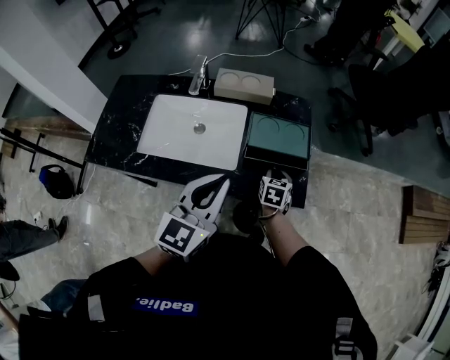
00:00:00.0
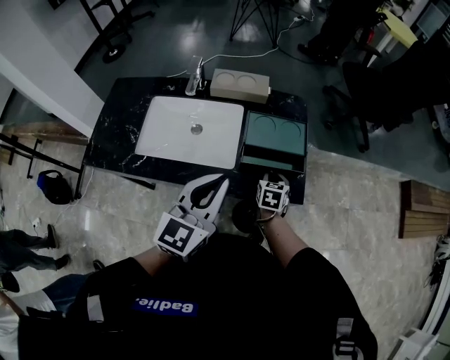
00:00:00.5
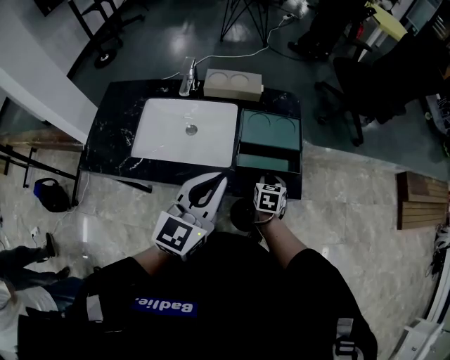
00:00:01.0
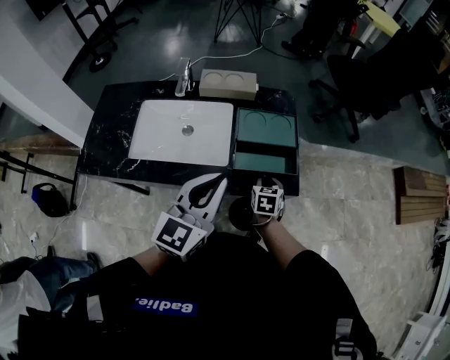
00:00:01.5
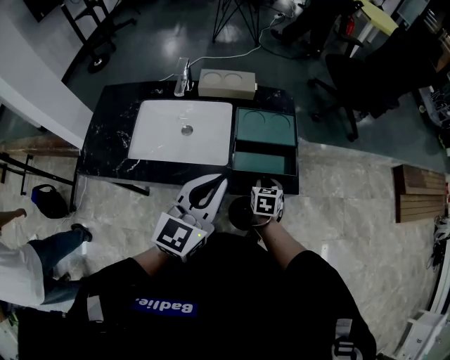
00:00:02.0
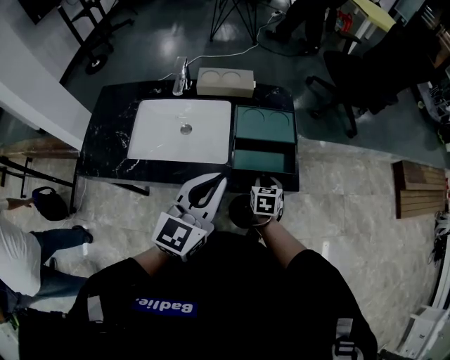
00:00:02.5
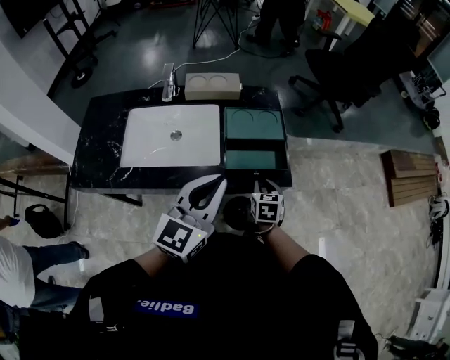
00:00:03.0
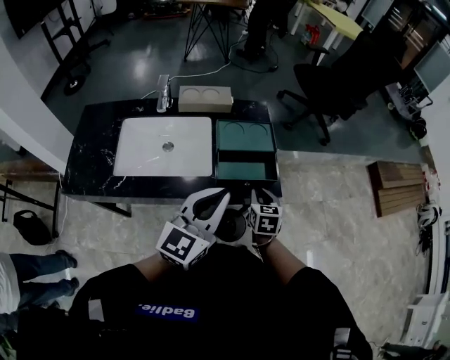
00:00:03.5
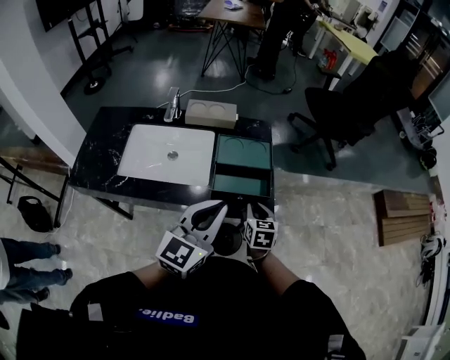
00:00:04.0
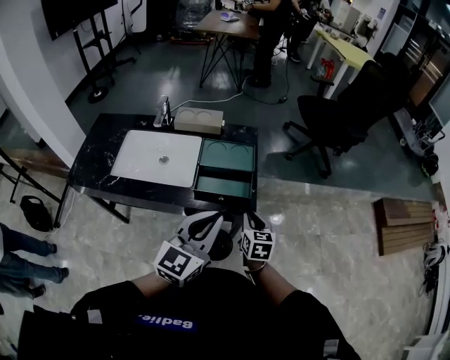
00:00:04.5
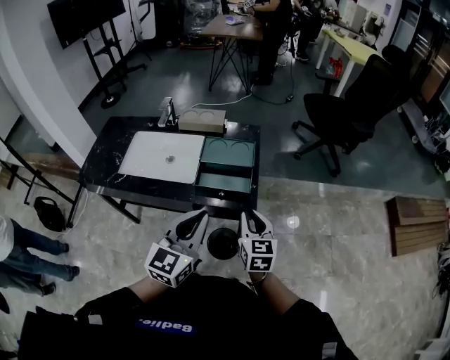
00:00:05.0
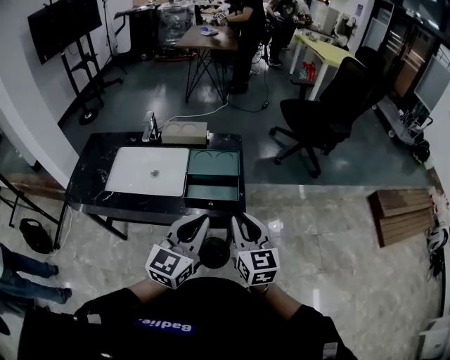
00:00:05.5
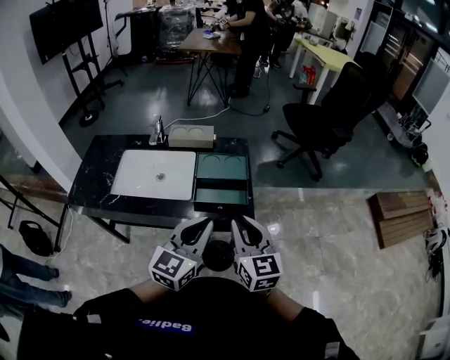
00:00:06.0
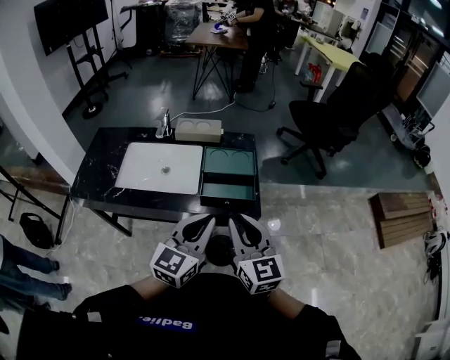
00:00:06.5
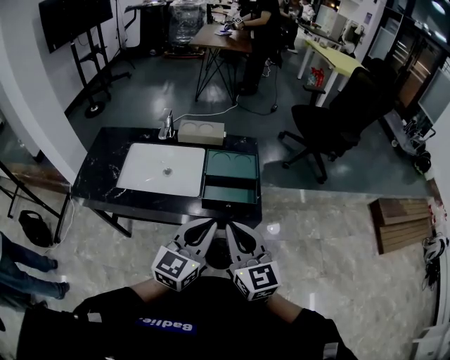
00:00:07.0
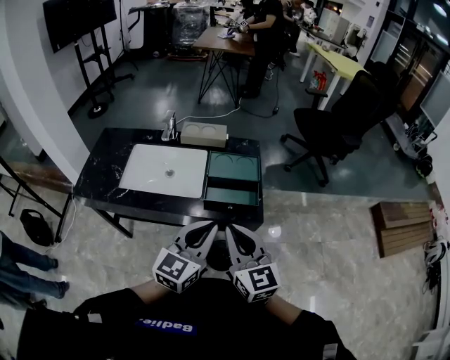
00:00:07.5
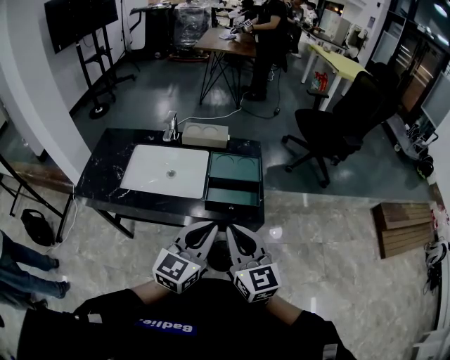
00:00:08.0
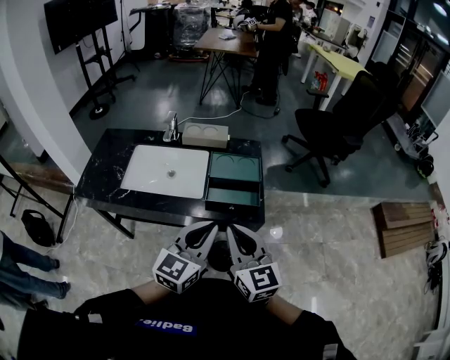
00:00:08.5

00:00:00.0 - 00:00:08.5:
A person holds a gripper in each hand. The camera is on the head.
00:00:00.0 - 00:00:02.0: The right gripper shifts approximately 5 cm backward.
00:00:02.0 - 00:00:04.0: The right gripper travels upward by some 10 cm. The left gripper goes approximately 5 cm to the right.
00:00:04.0 - 00:00:06.5: The right gripper goes approximately 25 cm upward and backward, and swivels some 30 degrees. The left gripper is displaced backward by approximately 5 cm.
00:00:06.5 - 00:00:08.5: The grippers make only small movements.

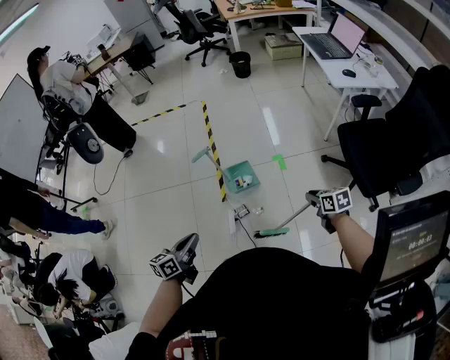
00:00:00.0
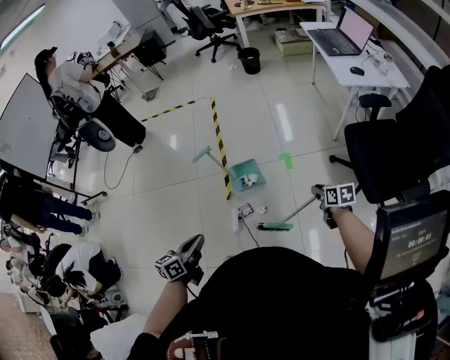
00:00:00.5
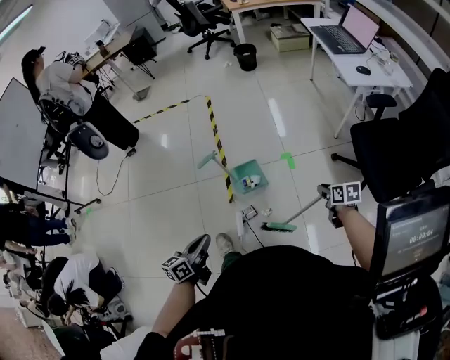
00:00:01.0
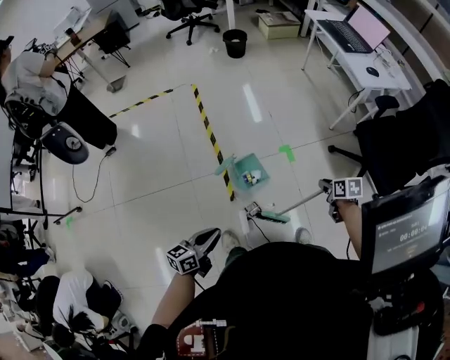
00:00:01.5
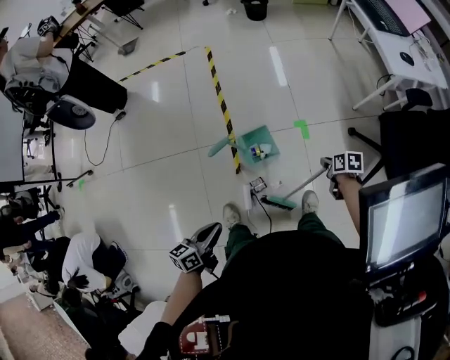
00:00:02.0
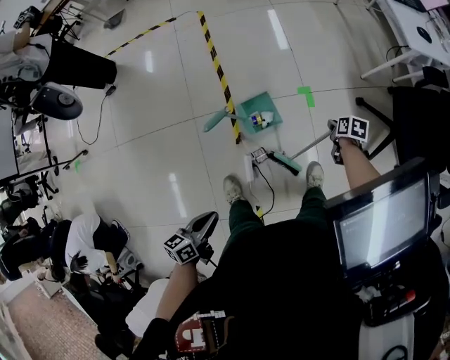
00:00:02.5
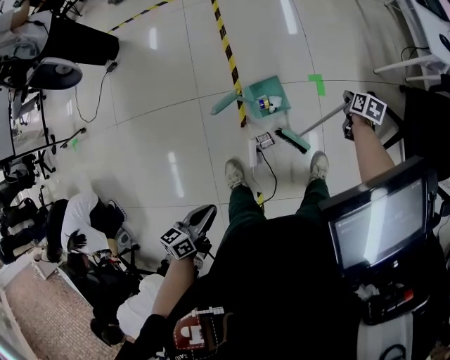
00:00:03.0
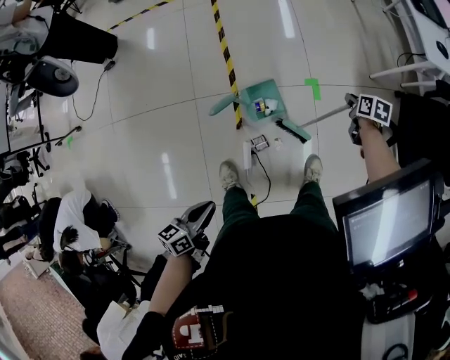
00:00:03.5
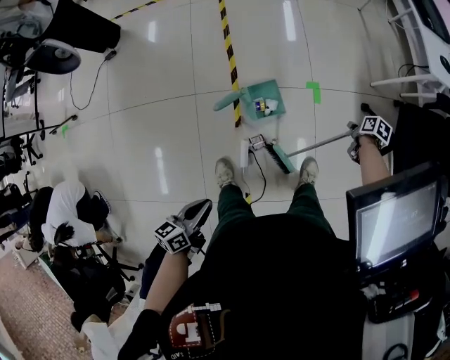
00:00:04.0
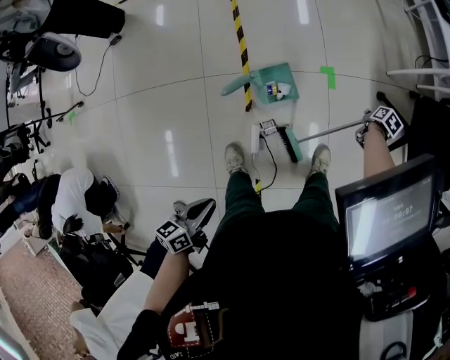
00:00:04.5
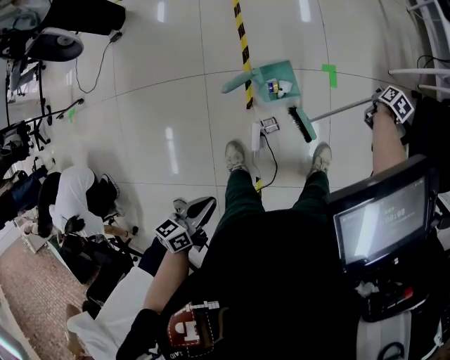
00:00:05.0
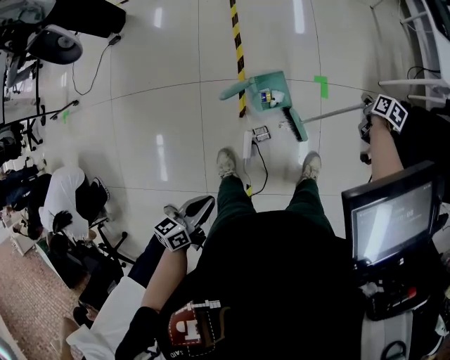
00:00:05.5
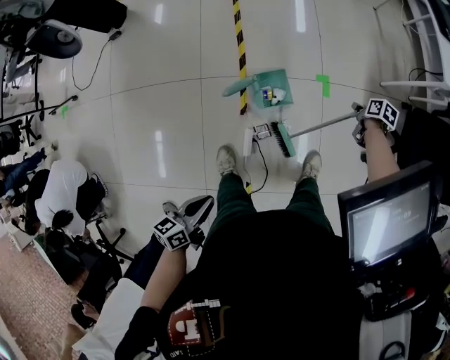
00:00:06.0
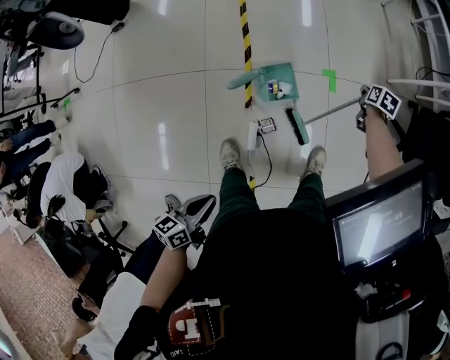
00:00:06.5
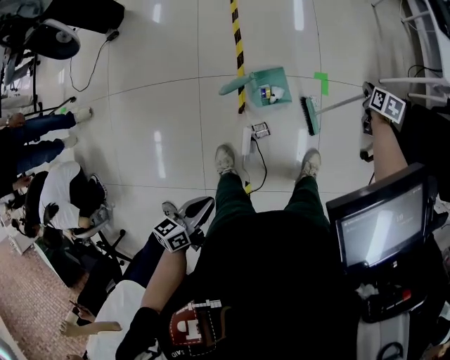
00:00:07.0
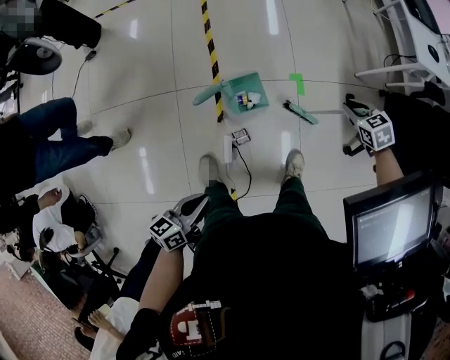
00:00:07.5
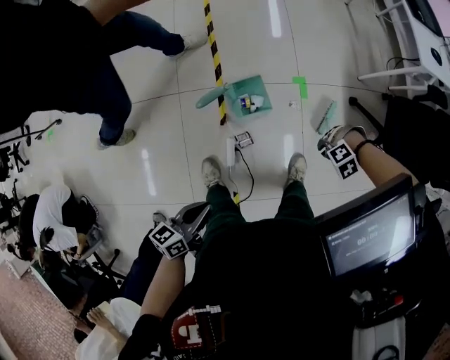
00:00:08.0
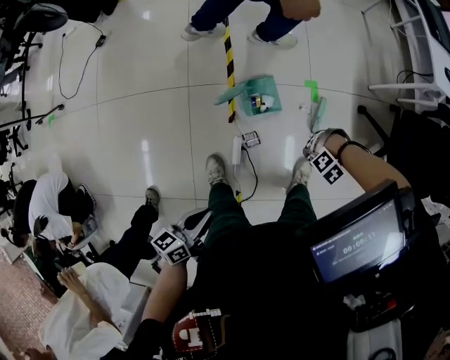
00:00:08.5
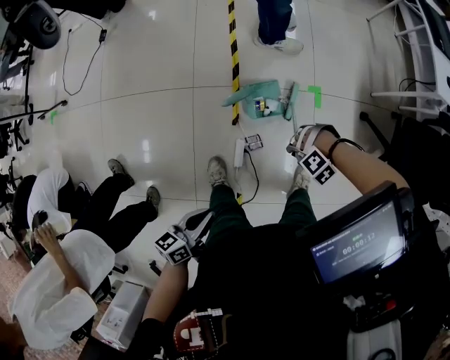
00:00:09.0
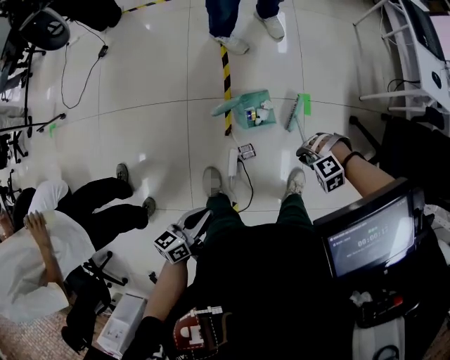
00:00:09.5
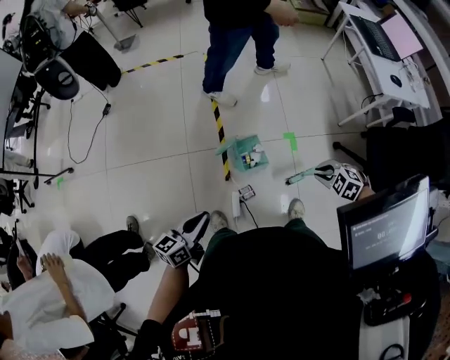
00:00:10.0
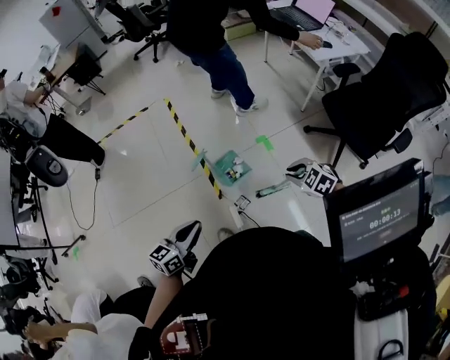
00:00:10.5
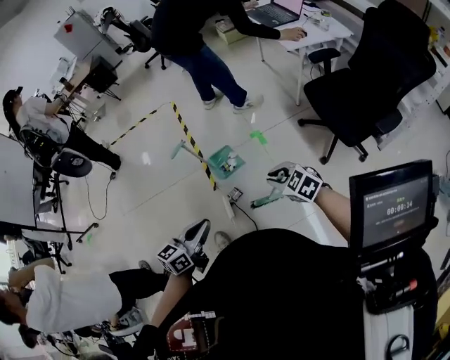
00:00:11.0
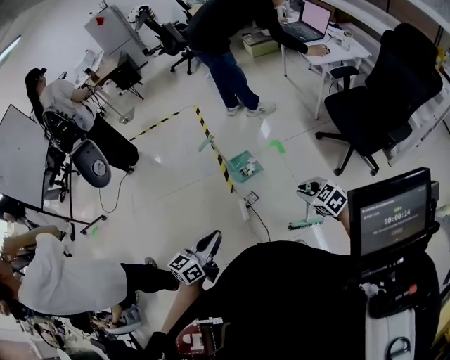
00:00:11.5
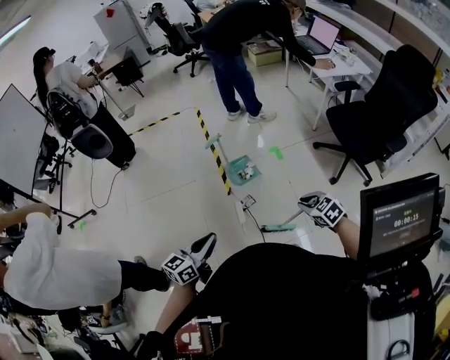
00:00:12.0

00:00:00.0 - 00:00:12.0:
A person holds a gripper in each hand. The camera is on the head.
00:00:00.0 - 00:00:02.0: The grippers both shift forward and downward by approximately 20 cm. The right gripper changes its angle by about 30 degrees.
00:00:02.0 - 00:00:04.0: The right gripper is displaced downward and forward by about 10 cm. The left gripper moves approximately 5 cm.
00:00:04.0 - 00:00:06.0: The right gripper moves up and down over about 10 cm, changing direction 2 times.
00:00:06.0 - 00:00:08.0: The right gripper moves approximately 10 cm upward and comes back, and rotates around the line of its fingers by about 140 degrees, counterclockwise from behind. Meanwhile the left gripper shifts by roughly 5 cm.
00:00:08.0 - 00:00:10.0: The left gripper moves roughly 10 cm. Meanwhile the right gripper goes roughly 20 cm upward, and rolls clockwise, seen from behind, by some 50 degrees.
00:00:10.0 - 00:00:12.0: The two grippers go some 35 cm backward. The right gripper changes its angle by approximately 40 degrees.

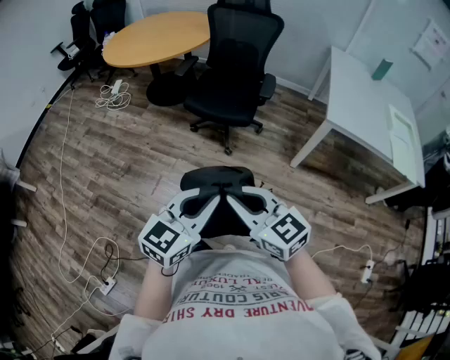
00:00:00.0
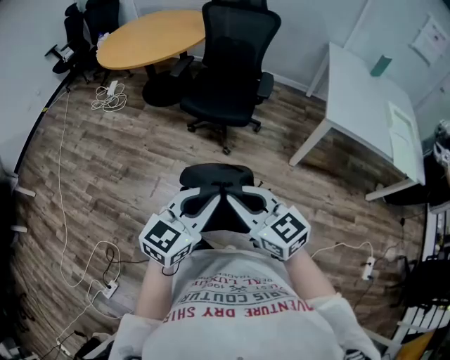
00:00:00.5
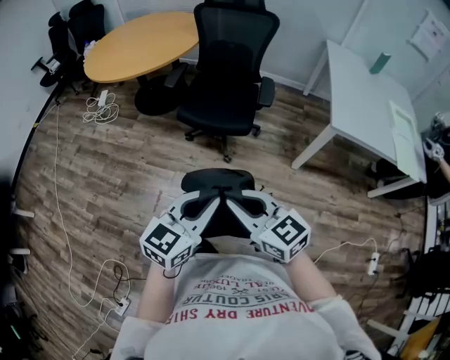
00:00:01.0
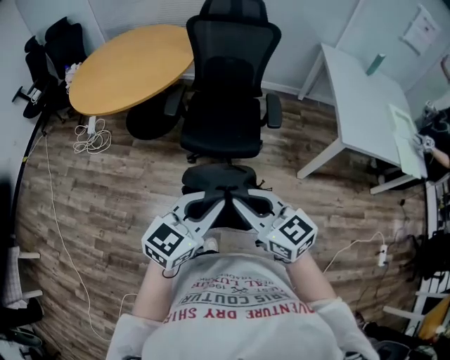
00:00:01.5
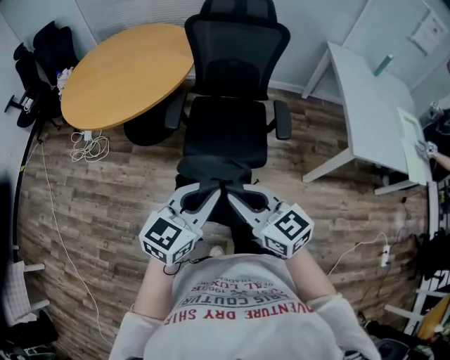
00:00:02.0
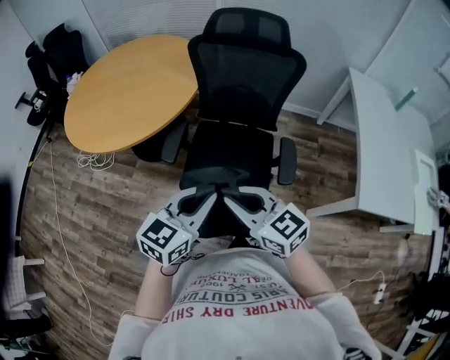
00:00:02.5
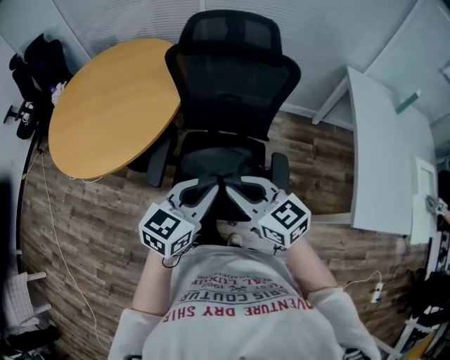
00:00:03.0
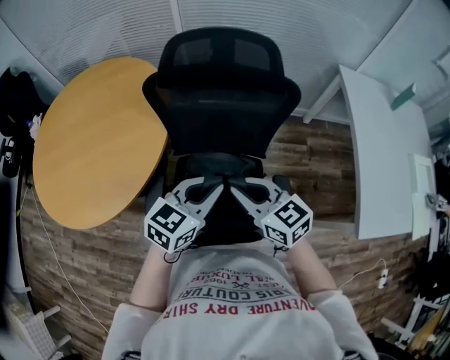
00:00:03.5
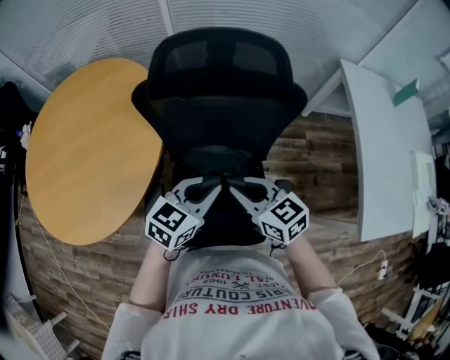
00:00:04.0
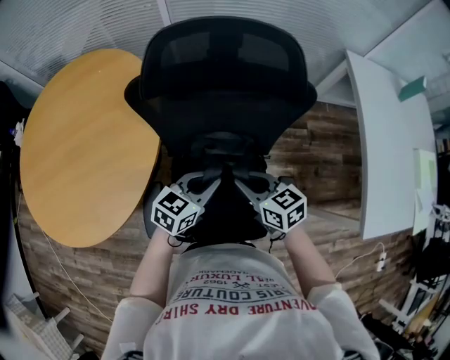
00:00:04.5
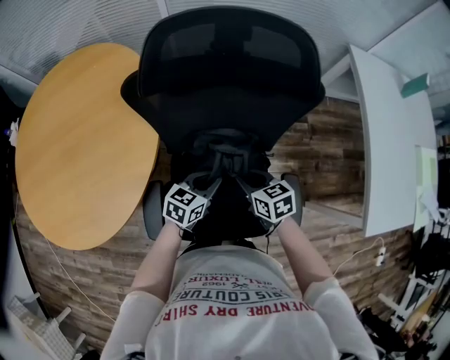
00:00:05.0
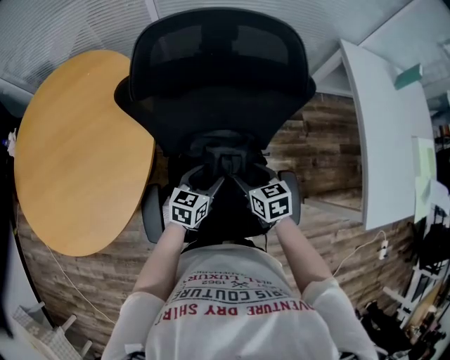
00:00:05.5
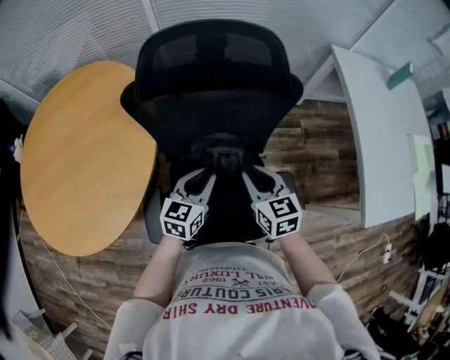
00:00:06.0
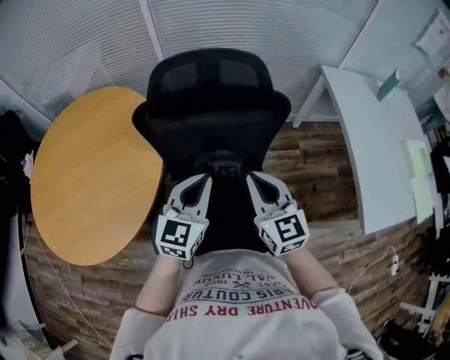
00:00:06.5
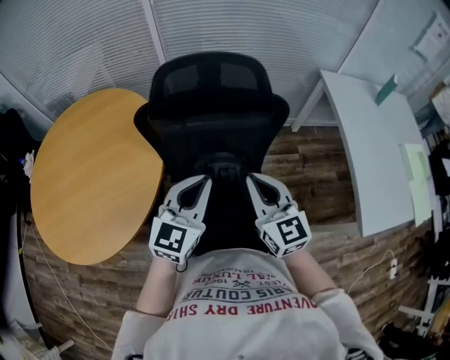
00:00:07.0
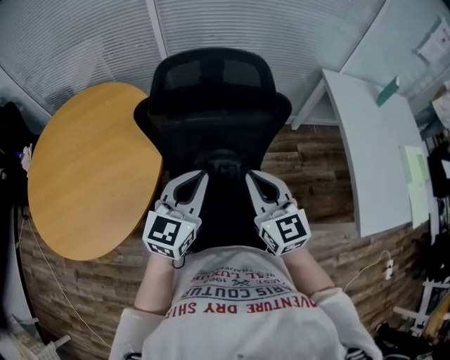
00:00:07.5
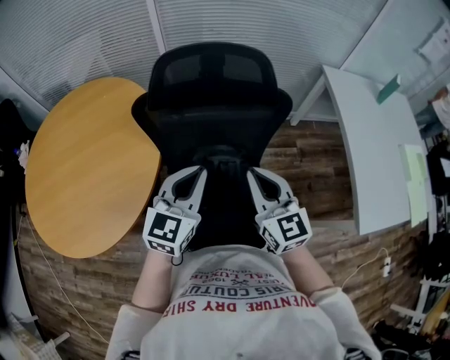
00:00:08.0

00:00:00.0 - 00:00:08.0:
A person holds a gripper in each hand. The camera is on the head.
00:00:00.0 - 00:00:02.0: Both grippers are carried forward, about 40 cm.
00:00:02.0 - 00:00:04.0: The two grippers travel together, forward, about 50 cm.
00:00:04.0 - 00:00:06.0: The left gripper is displaced downward by about 10 cm, and opens and closes again. Meanwhile the right gripper moves about 15 cm downward and comes back, turns by approximately 30 degrees, and opens, then closes once more.
00:00:06.0 - 00:00:08.0: The two grippers go some 15 cm upward. The right gripper changes its angle by some 20 degrees, and closes its fingers.
